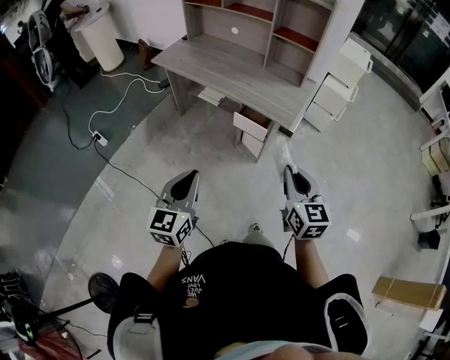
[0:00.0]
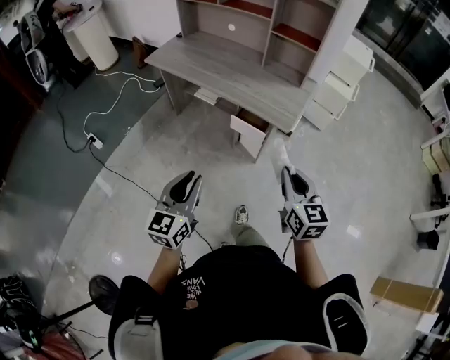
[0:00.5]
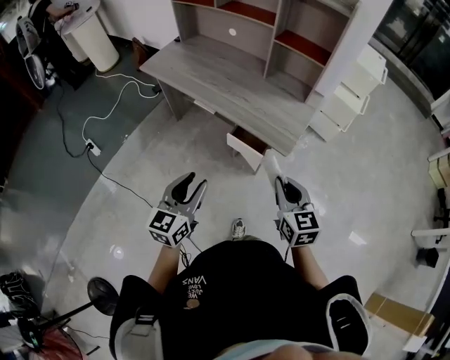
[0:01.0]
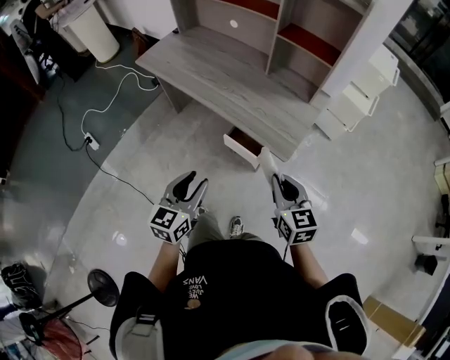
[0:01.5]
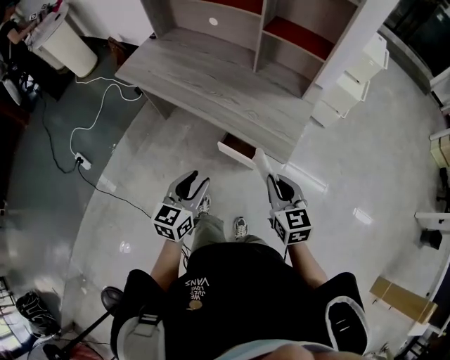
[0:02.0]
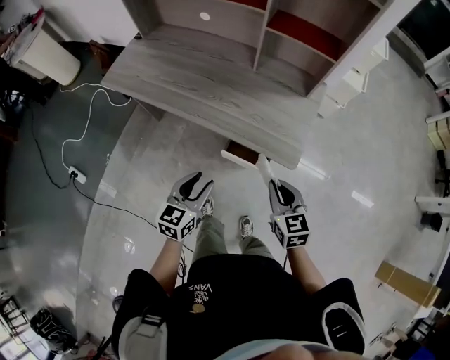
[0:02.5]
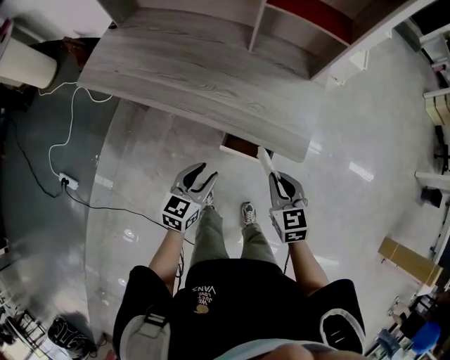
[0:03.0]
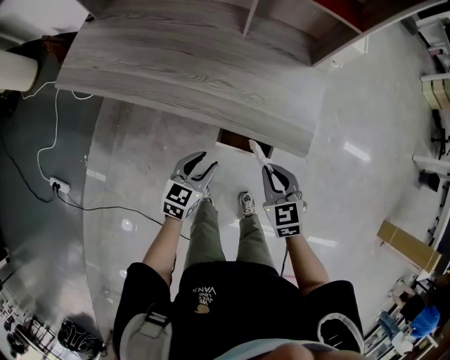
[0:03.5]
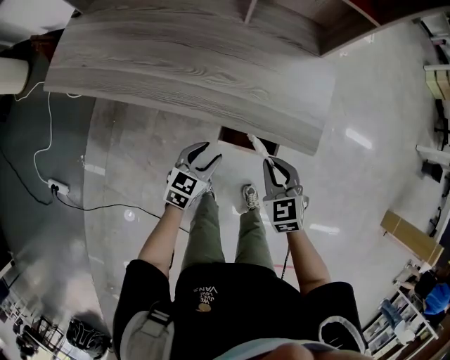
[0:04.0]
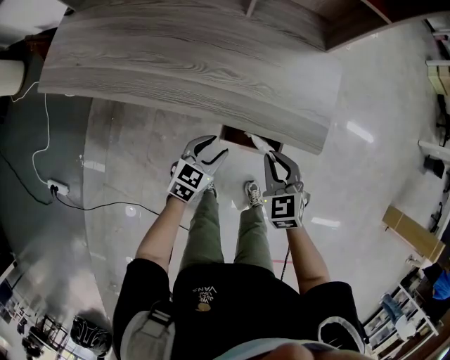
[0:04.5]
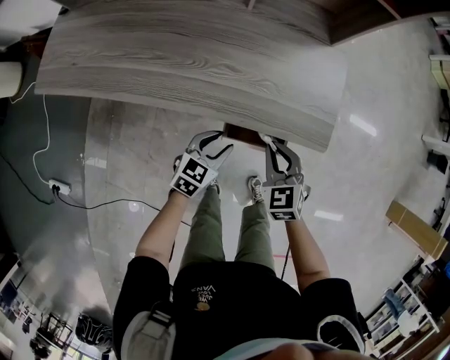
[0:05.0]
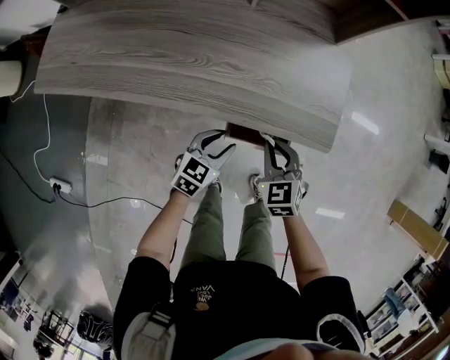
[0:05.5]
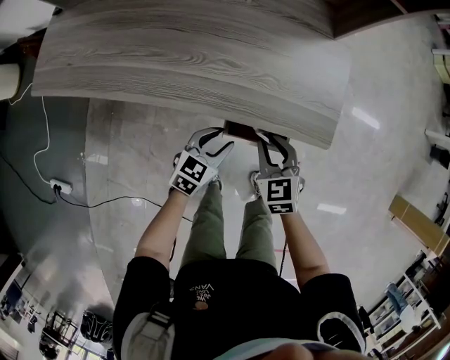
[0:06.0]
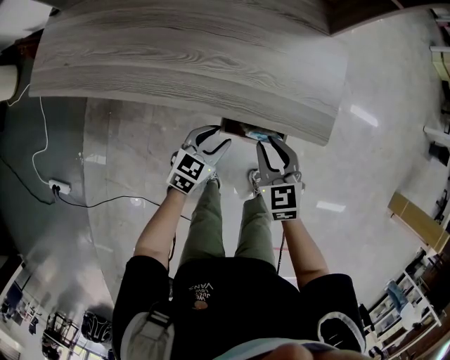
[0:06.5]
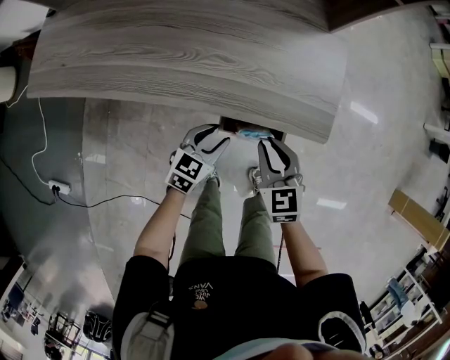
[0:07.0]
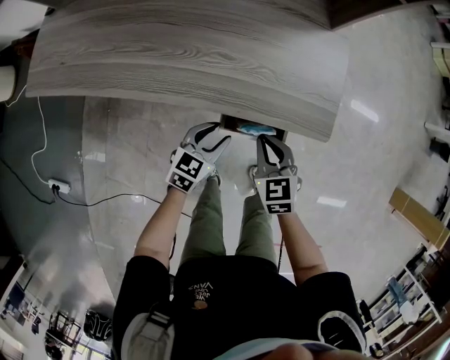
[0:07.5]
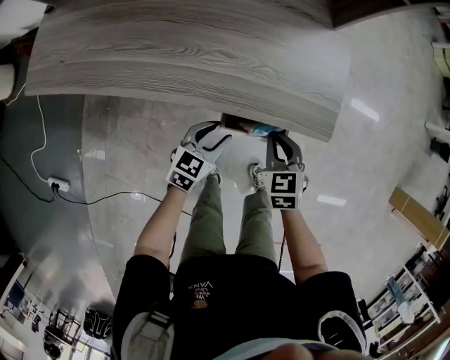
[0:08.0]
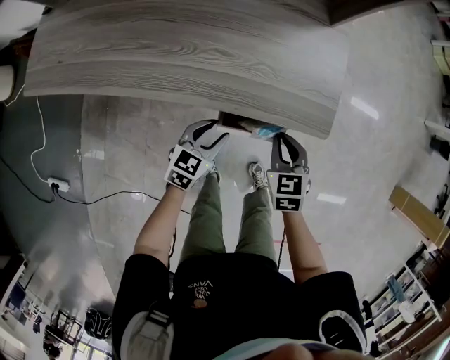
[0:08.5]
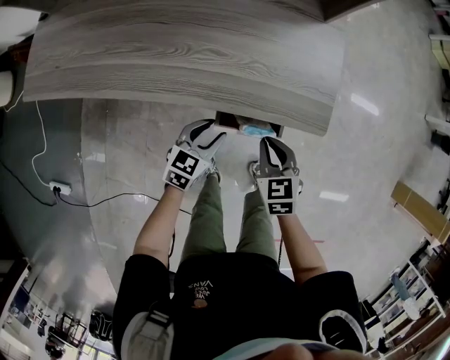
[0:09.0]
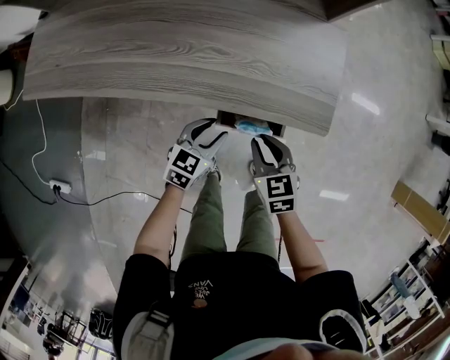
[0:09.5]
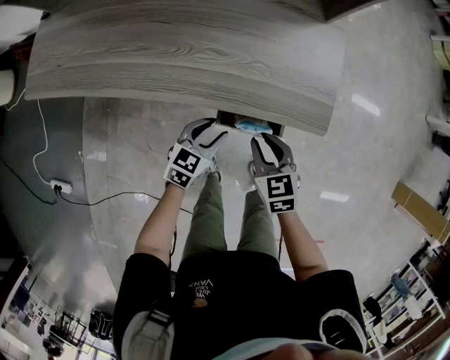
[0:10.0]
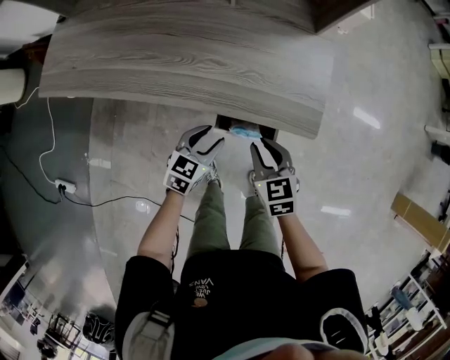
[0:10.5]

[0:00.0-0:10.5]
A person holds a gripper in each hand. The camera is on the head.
0:00.0 to 0:02.0: The grippers both shift forward and downward by some 30 cm. The left gripper opens its fingers.
0:02.0 to 0:04.0: The left gripper heads downward and forward, covering roughly 30 cm, and swivels about 30 degrees; the right gripper shifts approximately 20 cm downward, forward and to the left, and rotates approximately 20 degrees.
0:06.5 to 0:08.5: The right gripper travels to the right by roughly 5 cm.
0:08.5 to 0:10.5: The right gripper moves approximately 5 cm.

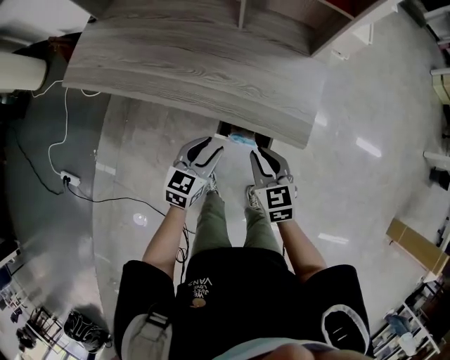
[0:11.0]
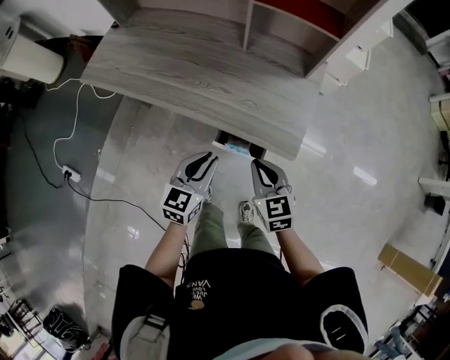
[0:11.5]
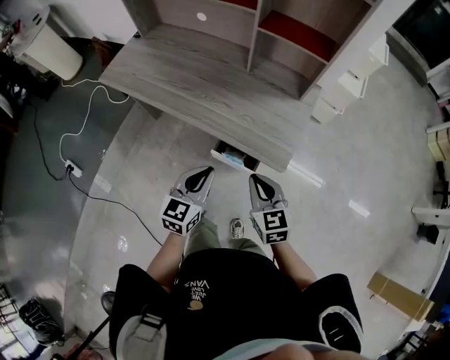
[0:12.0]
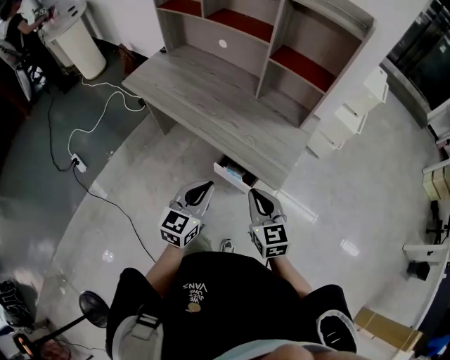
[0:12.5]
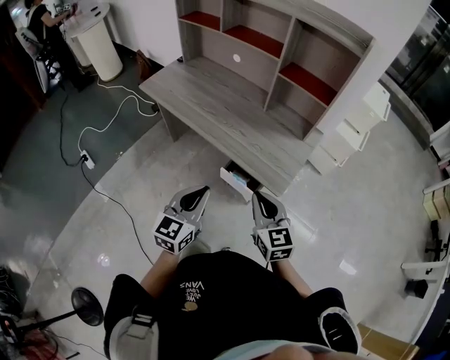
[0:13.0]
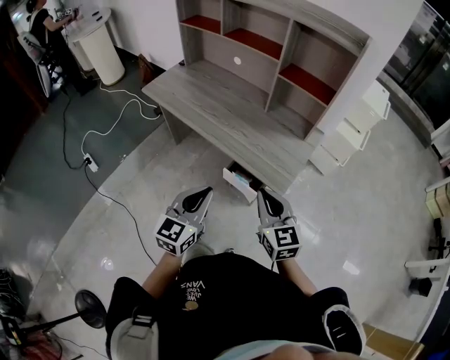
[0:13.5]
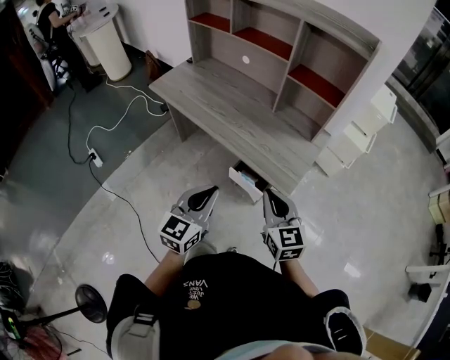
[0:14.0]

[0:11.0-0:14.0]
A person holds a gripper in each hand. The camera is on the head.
0:11.0 to 0:12.5: The two grippers go about 20 cm upward and backward. The right gripper changes its angle by approximately 20 degrees. Meanwhile the left gripper turns by some 30 degrees, and closes its fingers.
0:12.5 to 0:14.0: The left gripper moves upward and backward, about 10 cm. Meanwhile the right gripper shifts roughly 5 cm upward.

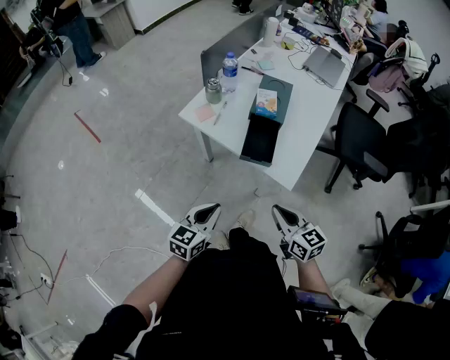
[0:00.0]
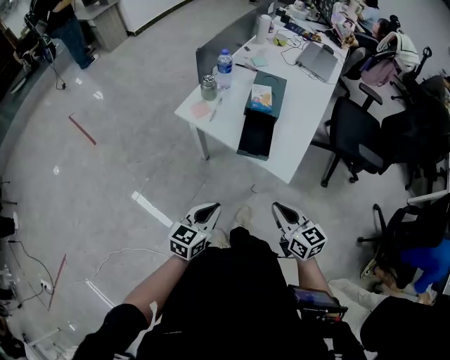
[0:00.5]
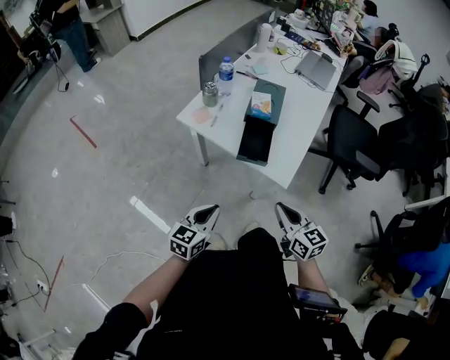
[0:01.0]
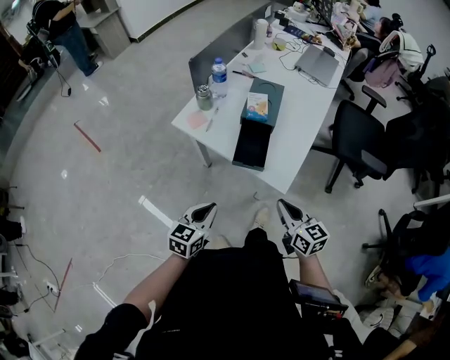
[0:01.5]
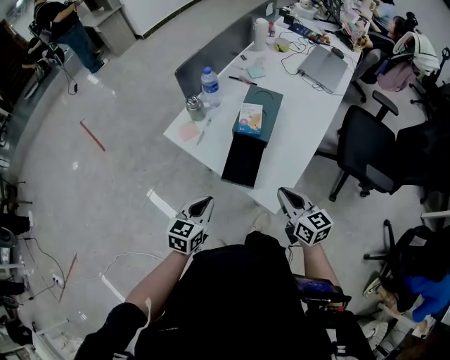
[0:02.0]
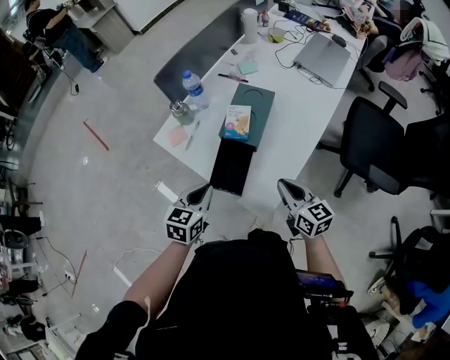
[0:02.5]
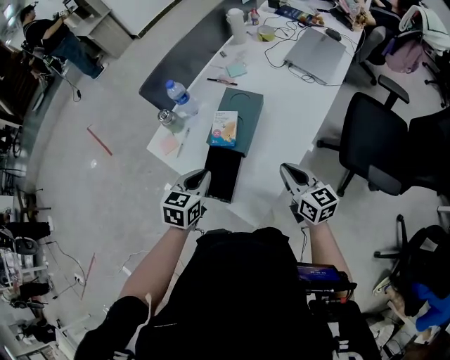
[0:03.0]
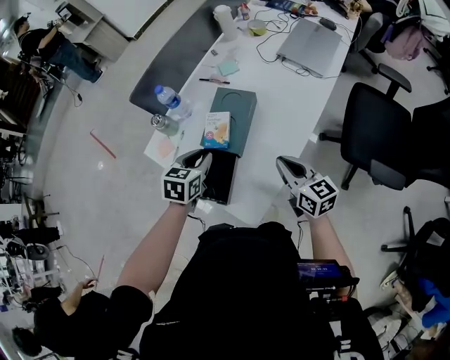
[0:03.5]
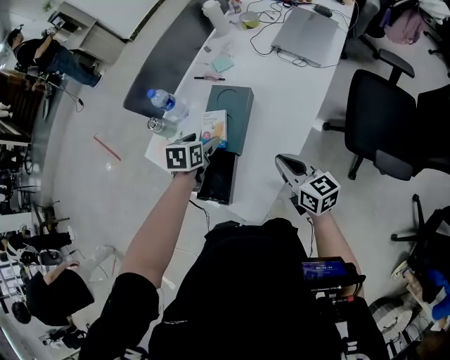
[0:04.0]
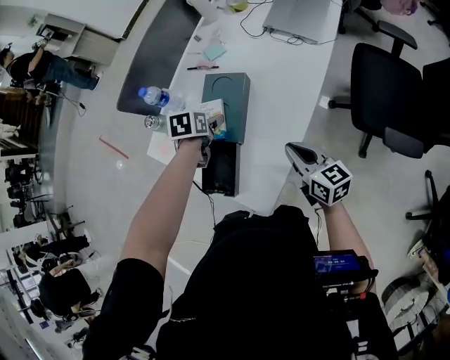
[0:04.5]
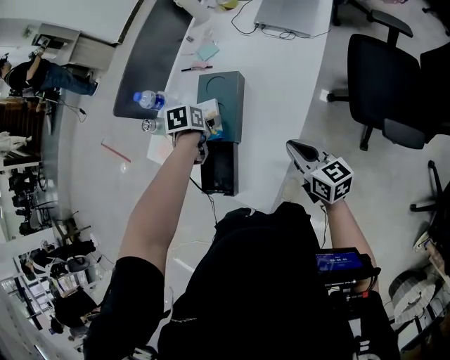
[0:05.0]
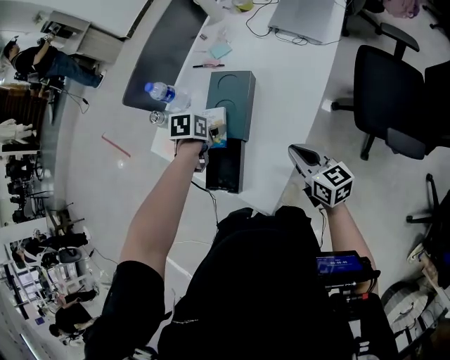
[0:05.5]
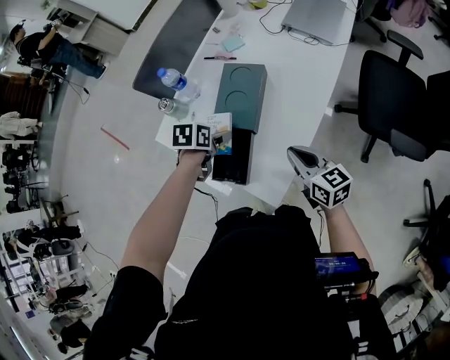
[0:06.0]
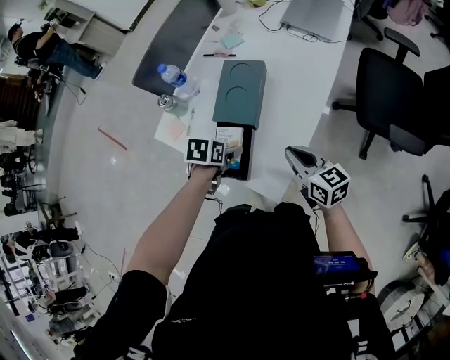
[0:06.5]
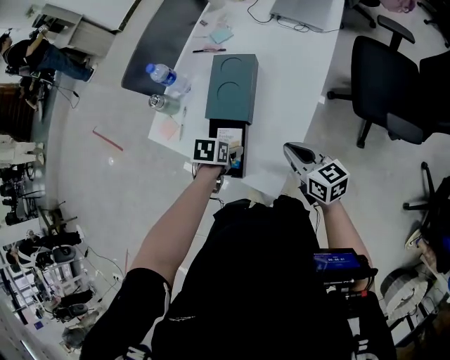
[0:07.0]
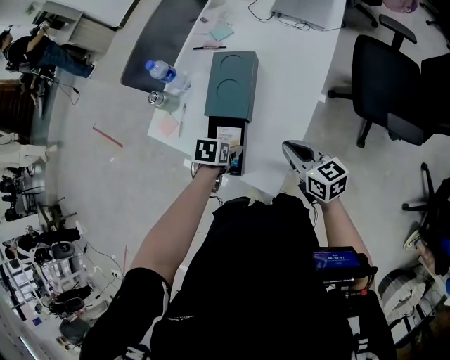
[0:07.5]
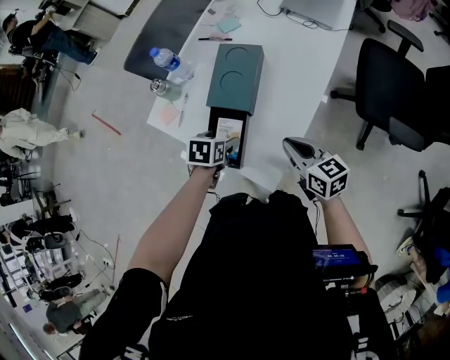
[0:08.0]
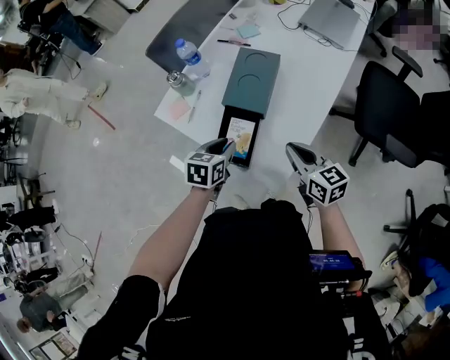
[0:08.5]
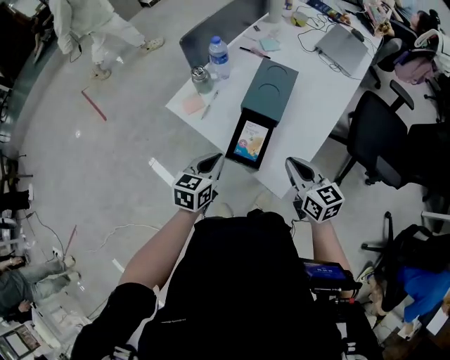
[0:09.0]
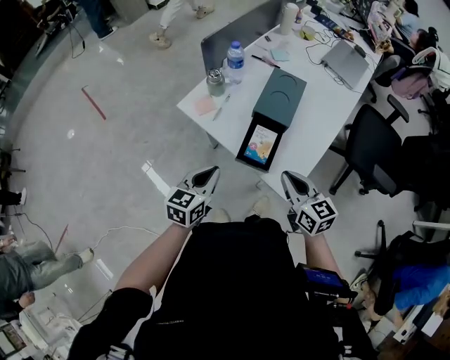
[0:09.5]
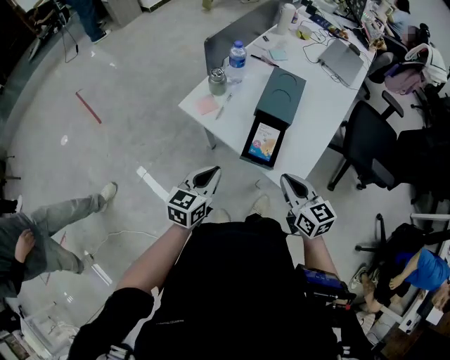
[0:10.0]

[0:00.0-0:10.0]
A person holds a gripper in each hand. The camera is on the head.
0:00.0 to 0:02.0: The right gripper heads forward and to the right, covering about 20 cm; the left gripper goes approximately 10 cm forward.
0:02.0 to 0:04.0: The left gripper moves forward and to the right, roughly 30 cm, swivels approximately 20 degrees, and opens, while the right gripper shifts some 20 cm forward and to the right.
0:04.0 to 0:06.0: The left gripper travels backward by about 5 cm, while the right gripper changes place by roughly 5 cm.
0:06.0 to 0:08.0: The left gripper goes approximately 5 cm backward.
0:08.0 to 0:10.0: Both grippers travel together to the left, backward and upward, roughly 20 cm. The left gripper points its fingers approximately 40 degrees further upward, and closes its fingers.

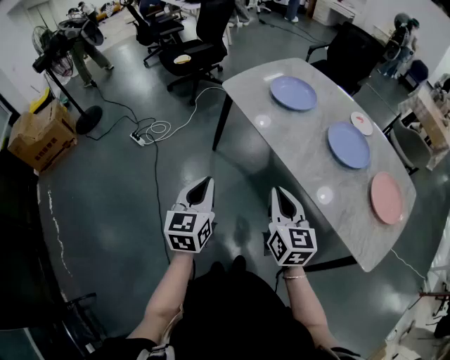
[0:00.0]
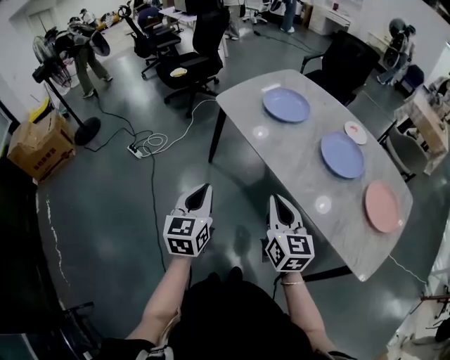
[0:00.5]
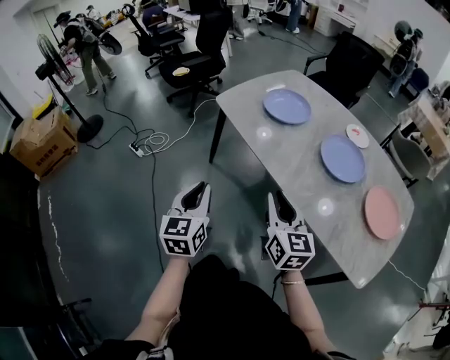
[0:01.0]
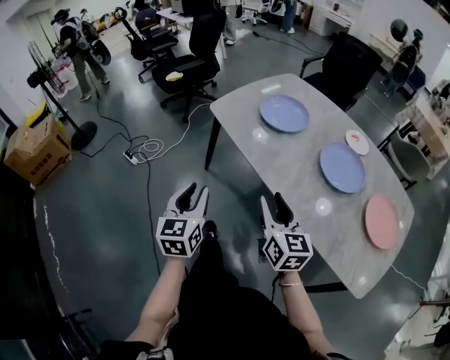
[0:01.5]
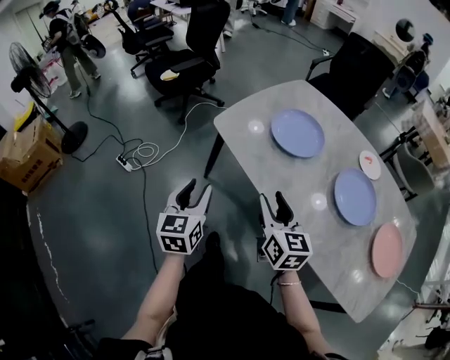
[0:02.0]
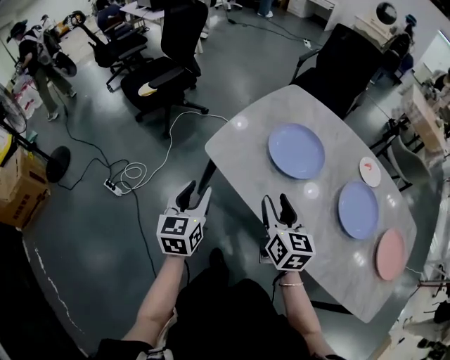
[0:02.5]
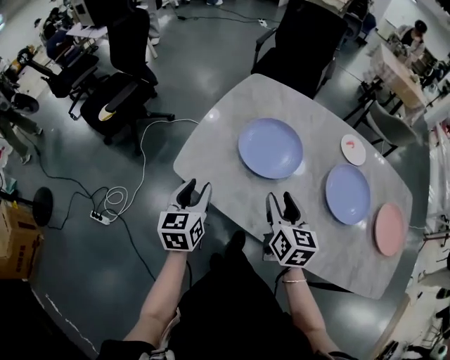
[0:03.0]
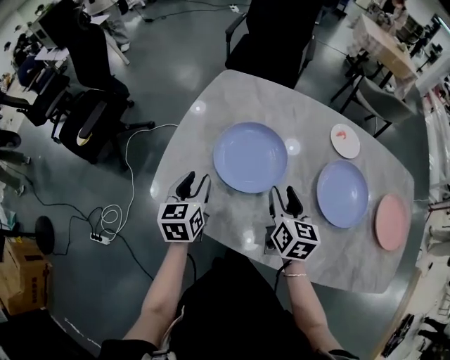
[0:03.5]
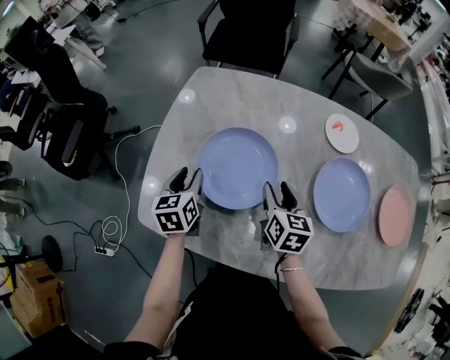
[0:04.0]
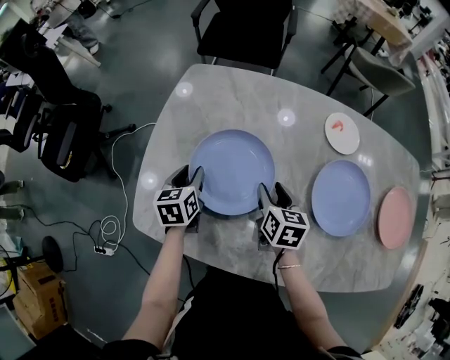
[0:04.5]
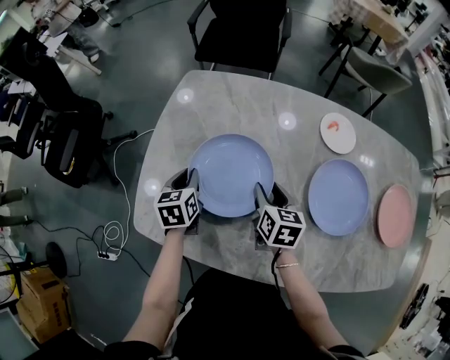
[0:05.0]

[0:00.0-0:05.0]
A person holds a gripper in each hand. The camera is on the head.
0:00.0 to 0:02.5: Both grippers travel together forward, some 35 cm. The right gripper opens. Meanwhile the left gripper opens up.
0:02.5 to 0:05.0: The right gripper shifts by roughly 30 cm, and turns by about 40 degrees. Meanwhile the left gripper ends up approximately 40 cm from where it was, rotates about 30 degrees, and closes.
